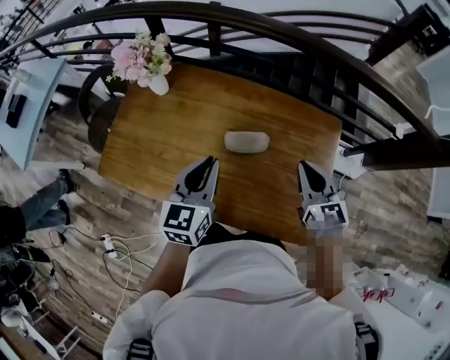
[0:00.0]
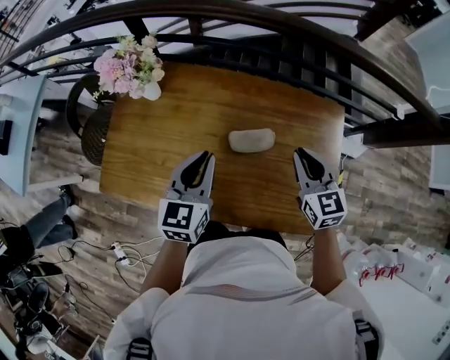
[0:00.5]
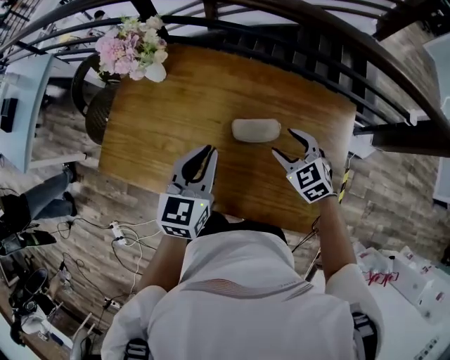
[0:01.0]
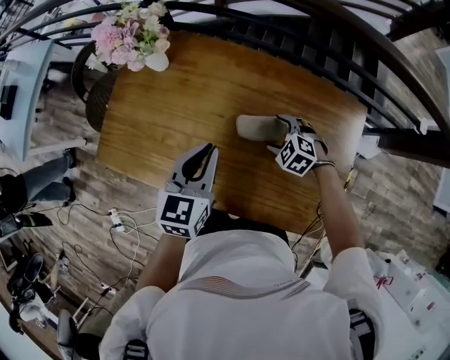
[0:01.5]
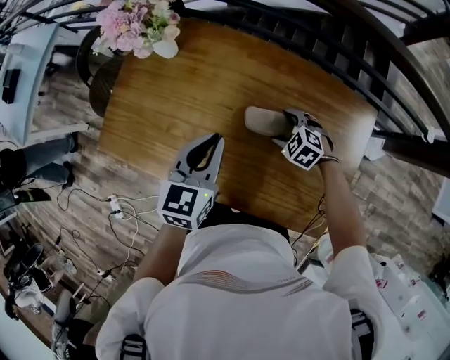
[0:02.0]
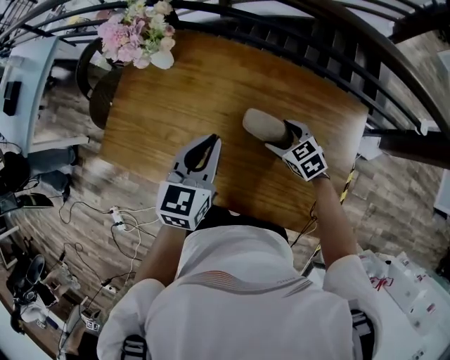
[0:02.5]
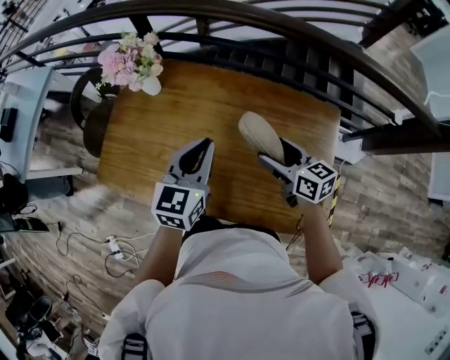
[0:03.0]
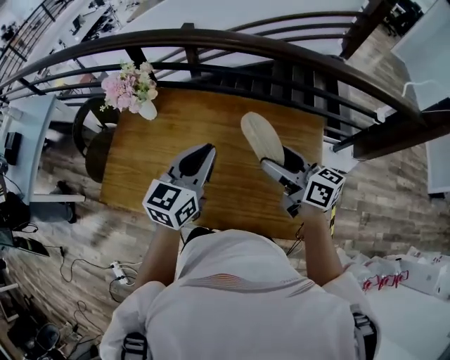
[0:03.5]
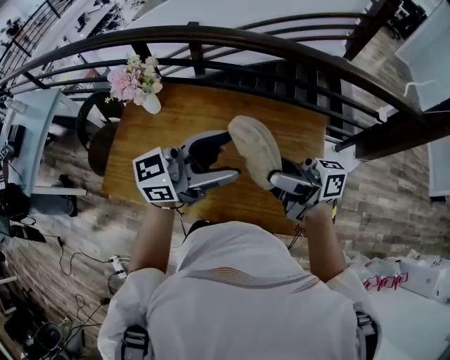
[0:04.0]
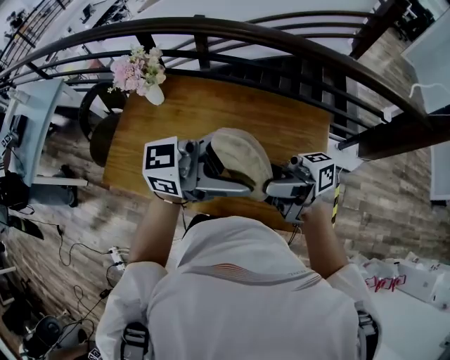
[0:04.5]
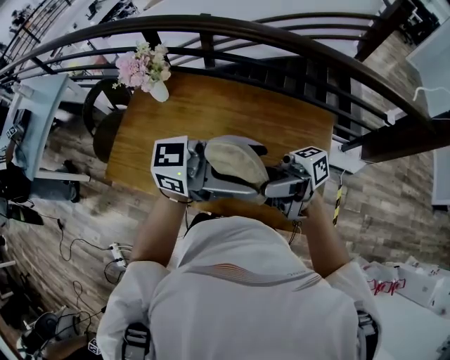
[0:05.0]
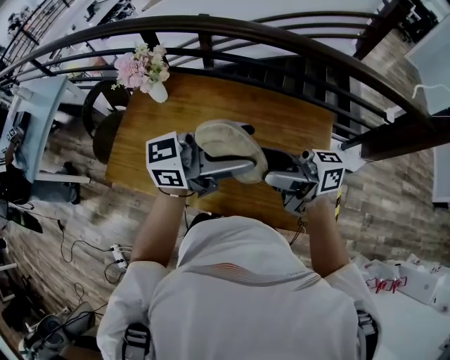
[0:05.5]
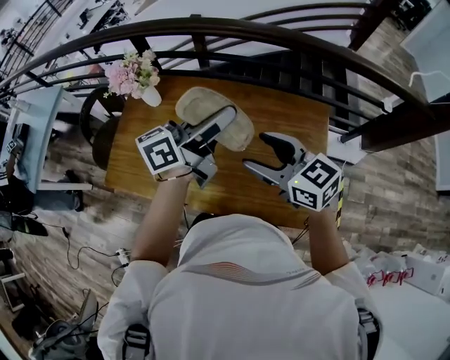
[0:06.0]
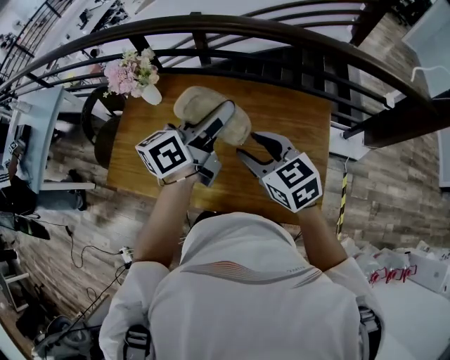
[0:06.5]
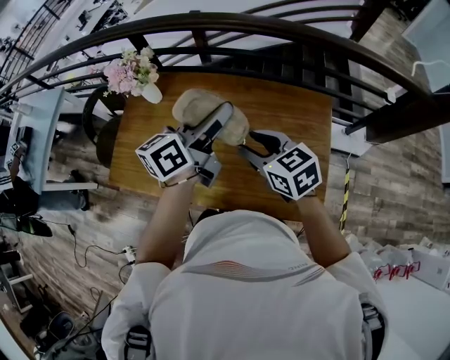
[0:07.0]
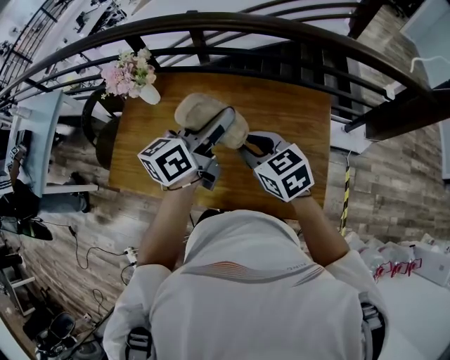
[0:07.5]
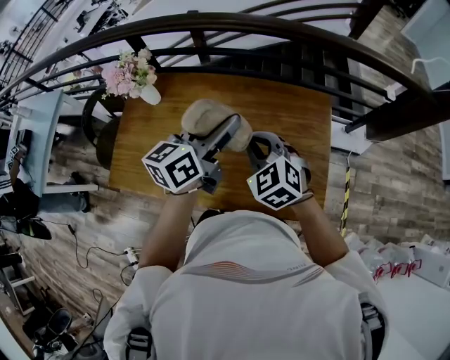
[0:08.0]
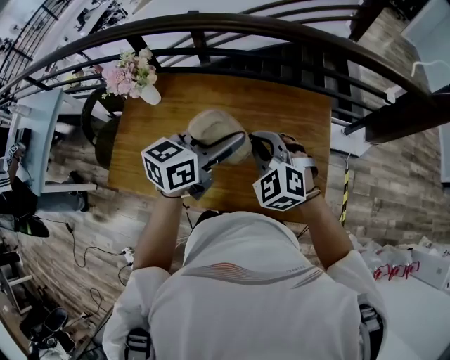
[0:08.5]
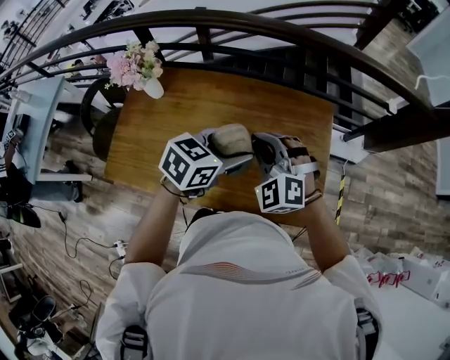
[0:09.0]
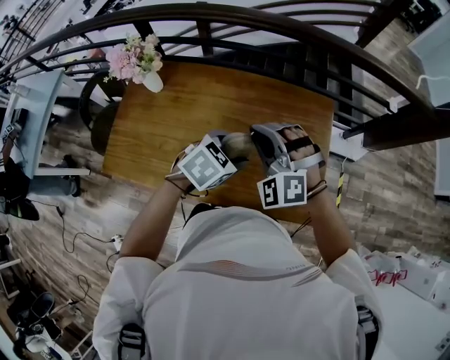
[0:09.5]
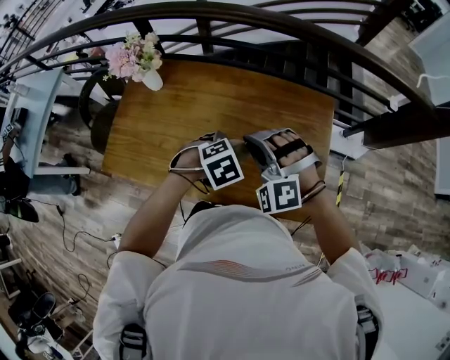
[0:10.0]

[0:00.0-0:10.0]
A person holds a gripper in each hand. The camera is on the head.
0:00.0 to 0:02.0: The left gripper is displaced downward and forward by some 10 cm; the right gripper goes about 25 cm downward and forward, tilts its fingers approximately 40 degrees downward, and opens its fingers.
0:02.0 to 0:04.0: The right gripper is displaced upward by roughly 40 cm, and tilts its fingers roughly 80 degrees upward. The left gripper moves upward, approximately 20 cm, points its fingers roughly 40 degrees further upward, and opens up.
0:04.0 to 0:06.0: The right gripper moves some 5 cm, and tilts its fingers about 40 degrees downward, while the left gripper changes place by roughly 10 cm, and turns by roughly 30 degrees.
0:06.0 to 0:08.0: The right gripper travels downward by some 5 cm, changes its angle by about 40 degrees, and closes its fingers; the left gripper turns by approximately 20 degrees.
0:08.0 to 0:10.0: The left gripper heads downward and backward, covering about 20 cm, and points its fingers about 70 degrees further downward. Meanwhile the right gripper twists roughly 50 degrees counterclockwise, seen from behind.

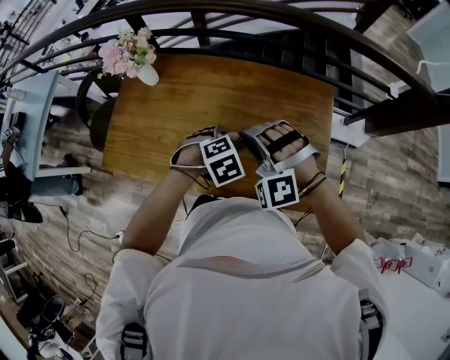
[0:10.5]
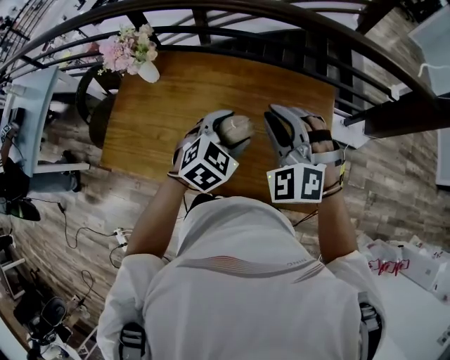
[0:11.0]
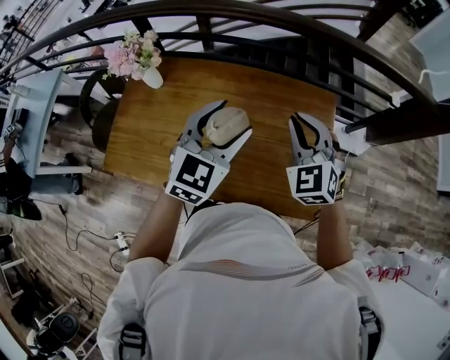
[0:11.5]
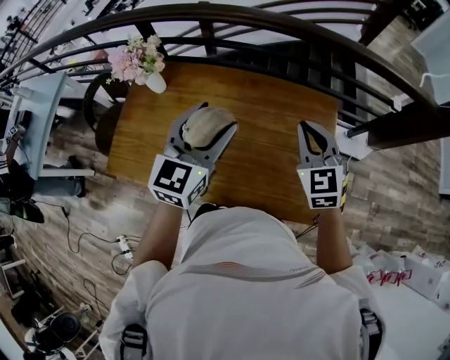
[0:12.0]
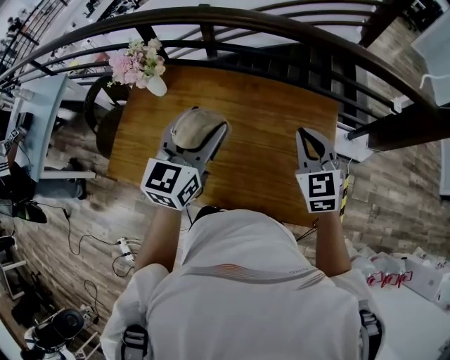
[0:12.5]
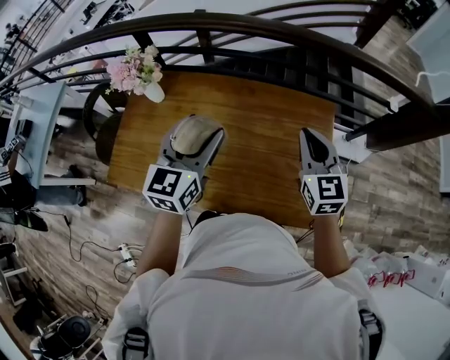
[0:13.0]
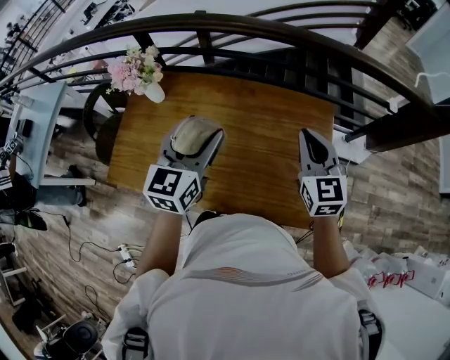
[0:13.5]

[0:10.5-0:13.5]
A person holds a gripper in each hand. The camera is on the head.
0:10.5 to 0:12.0: The left gripper heads upward, covering approximately 20 cm, and tilts its fingers about 60 degrees upward. Meanwhile the right gripper travels to the right, forward and upward by roughly 15 cm, and rolls clockwise, seen from behind, by some 60 degrees.
0:12.0 to 0:13.5: The grippers make only small movements.

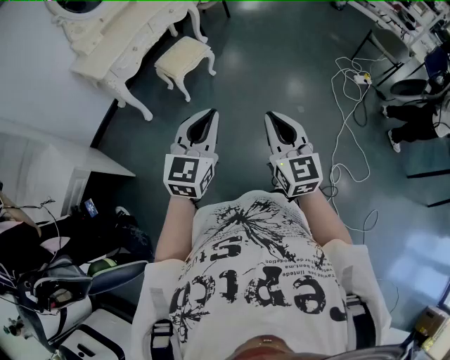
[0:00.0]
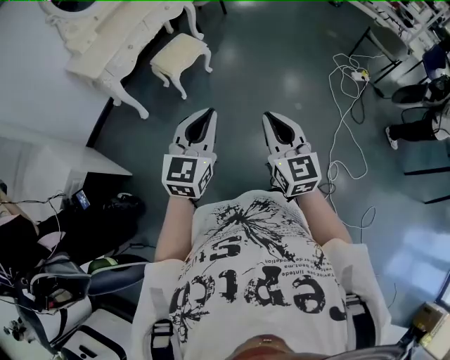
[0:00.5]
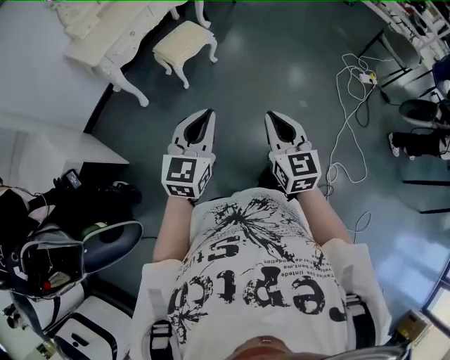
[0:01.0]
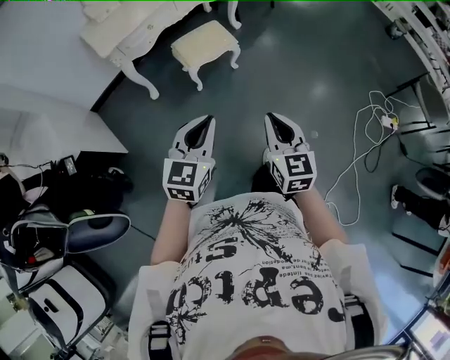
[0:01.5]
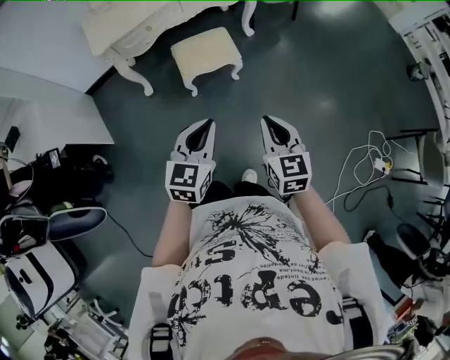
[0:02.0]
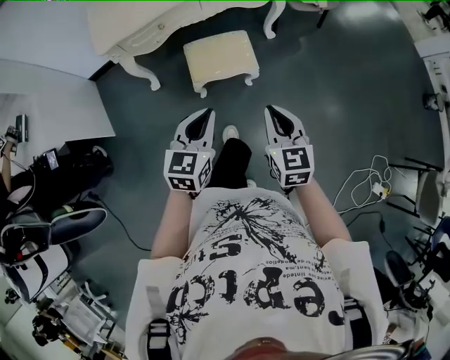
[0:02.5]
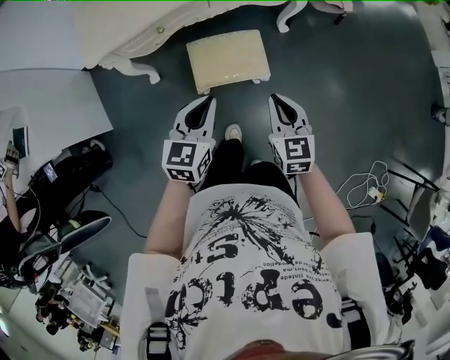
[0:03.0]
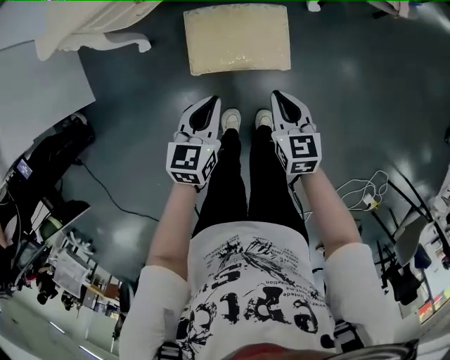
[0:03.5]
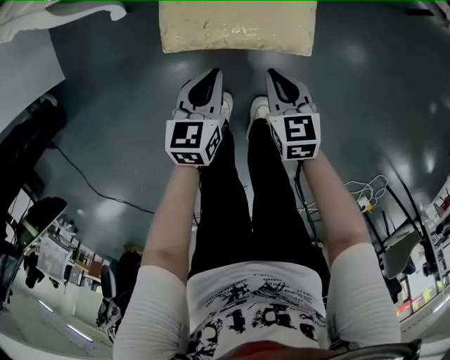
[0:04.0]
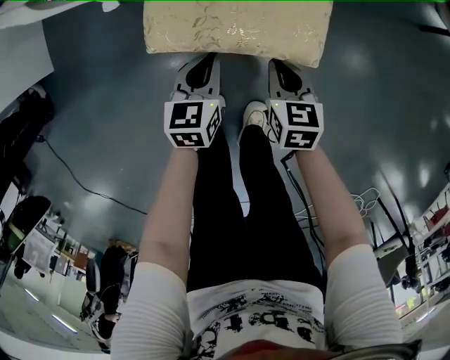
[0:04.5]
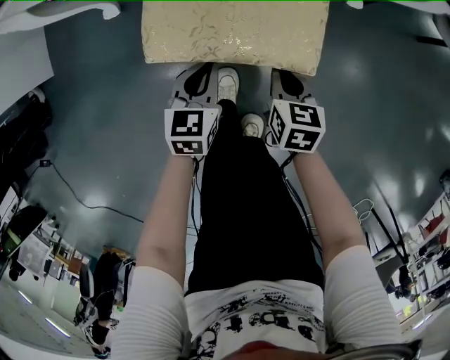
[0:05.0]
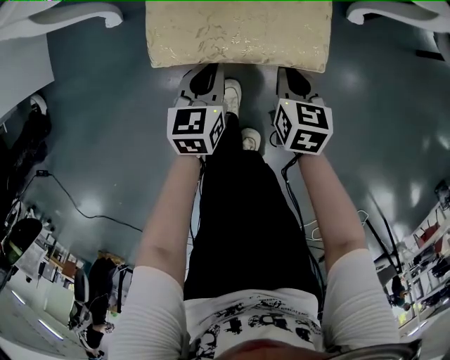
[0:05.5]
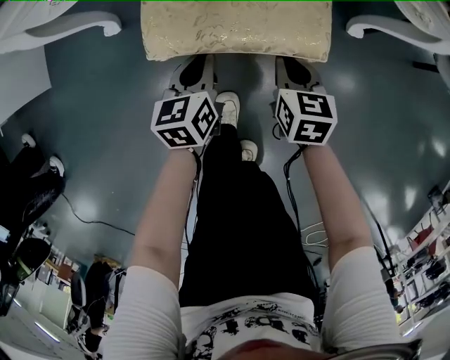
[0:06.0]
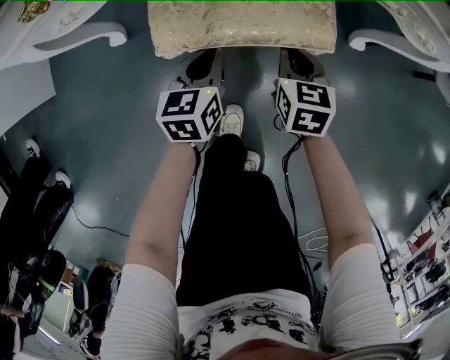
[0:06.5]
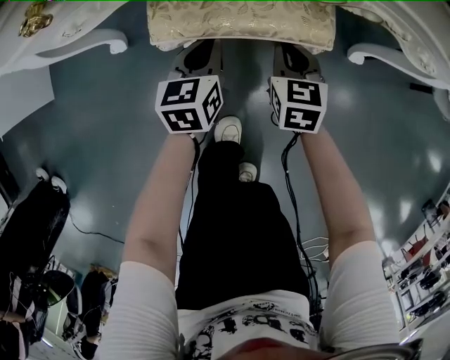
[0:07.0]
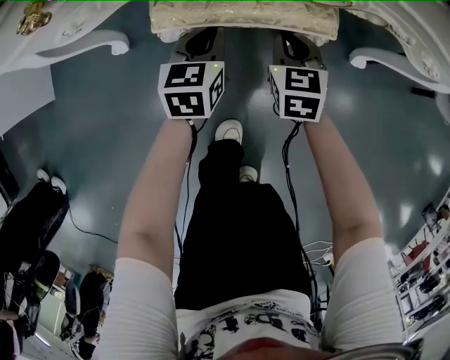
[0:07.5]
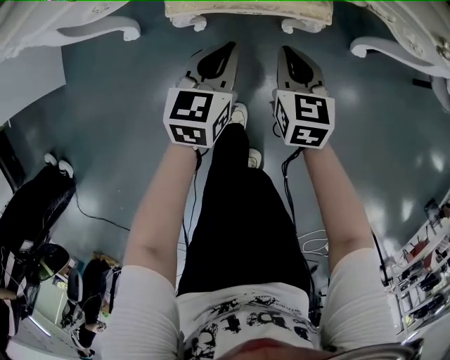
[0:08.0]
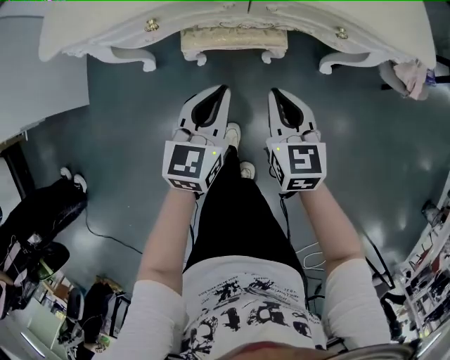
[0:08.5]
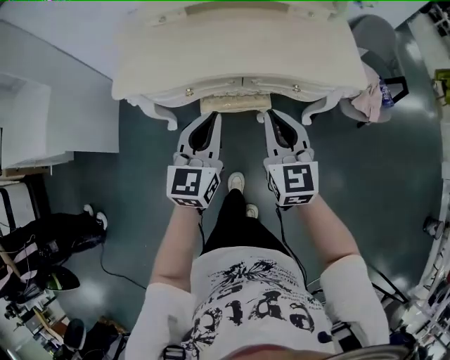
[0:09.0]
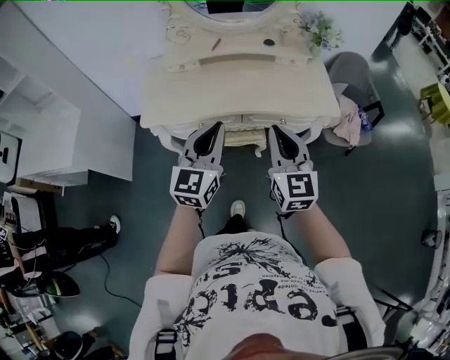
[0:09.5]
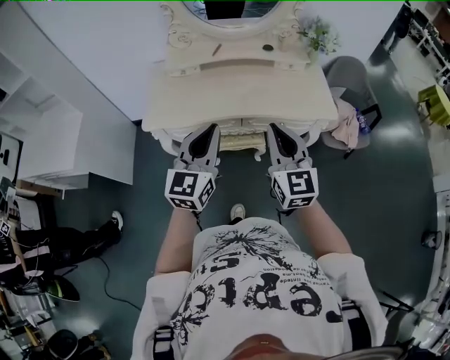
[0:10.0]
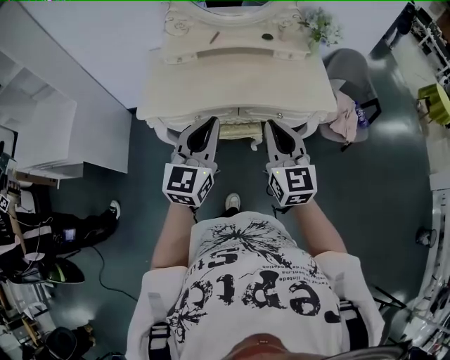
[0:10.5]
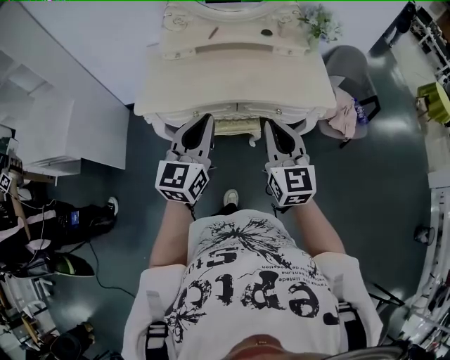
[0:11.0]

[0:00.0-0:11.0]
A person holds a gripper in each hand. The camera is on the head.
0:00.0 to 0:02.0: The right gripper ends up approximately 40 cm from where it was, and swivels approximately 30 degrees; the left gripper shifts by about 35 cm, and changes its angle by some 30 degrees.
0:02.0 to 0:03.5: The two grippers go about 50 cm forward and downward. The right gripper turns by roughly 20 degrees; the left gripper changes its angle by about 30 degrees.
0:03.5 to 0:05.5: The left gripper shifts some 30 cm downward. The right gripper is displaced downward and forward by about 30 cm.
0:05.5 to 0:07.5: The two grippers go about 20 cm forward. The right gripper swivels approximately 20 degrees.
0:07.5 to 0:09.0: Both grippers travel together upward, approximately 60 cm. The left gripper rotates some 30 degrees, while the right gripper changes its angle by roughly 30 degrees.
0:09.0 to 0:11.0: The grippers both shift upward by about 15 cm.

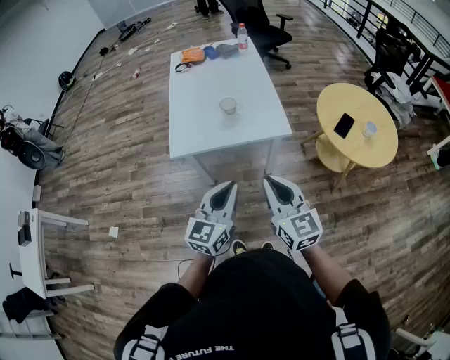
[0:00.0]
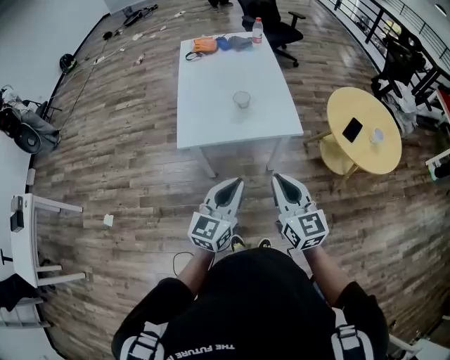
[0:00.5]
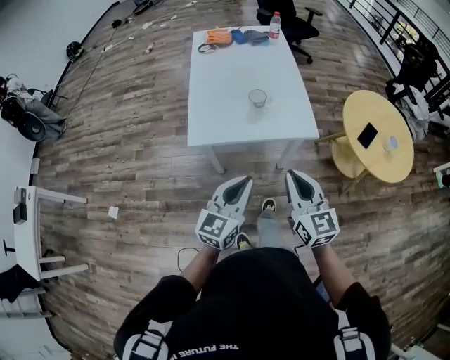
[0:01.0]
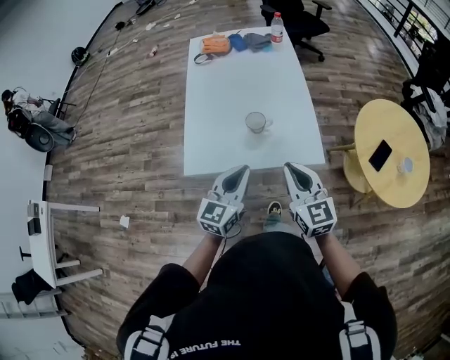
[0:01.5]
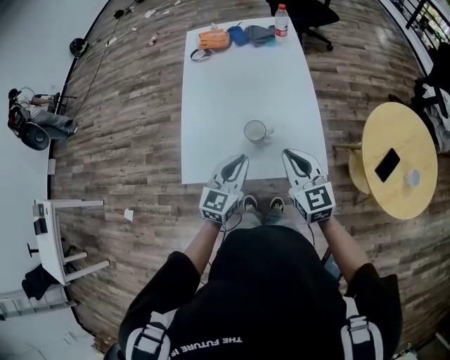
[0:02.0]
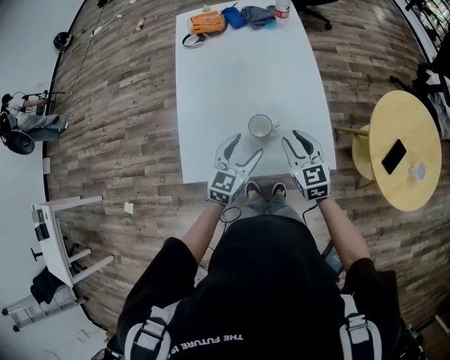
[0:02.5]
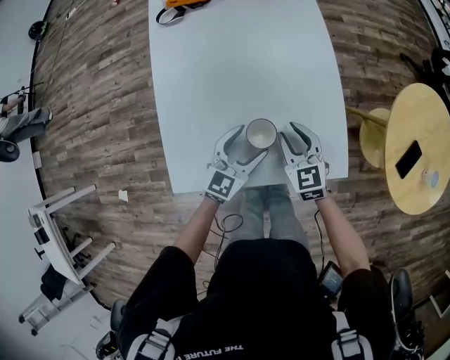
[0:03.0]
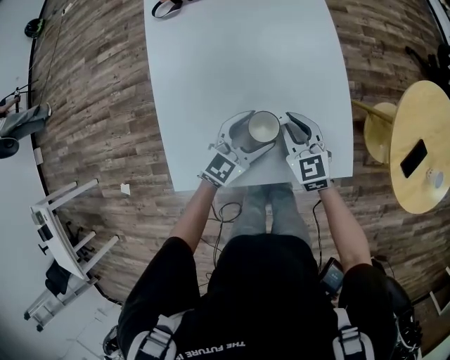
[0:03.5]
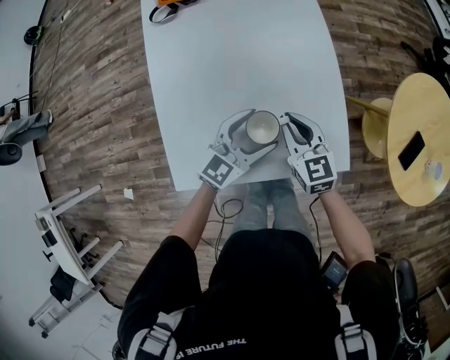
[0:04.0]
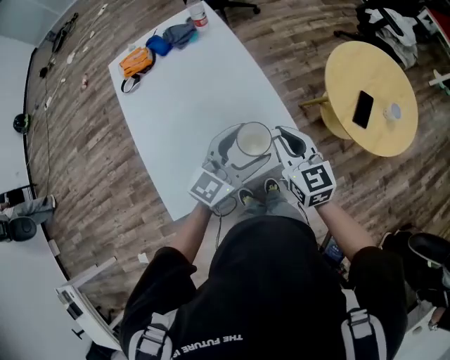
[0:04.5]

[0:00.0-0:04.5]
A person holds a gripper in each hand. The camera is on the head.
0:00.0 to 0:02.0: The two grippers go approximately 35 cm forward.
0:02.0 to 0:04.5: The right gripper reaches about 20 cm downward, then returns, and changes its angle by roughly 20 degrees; the left gripper travels downward and back again, about 15 cm each way, swivels roughly 40 degrees, and opens up.
